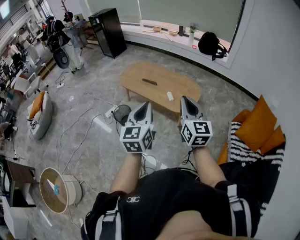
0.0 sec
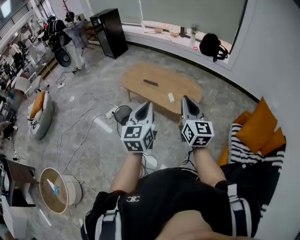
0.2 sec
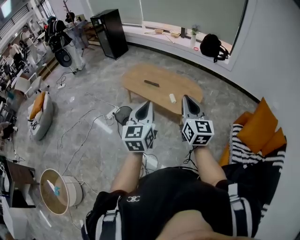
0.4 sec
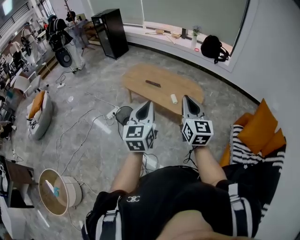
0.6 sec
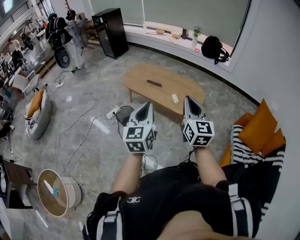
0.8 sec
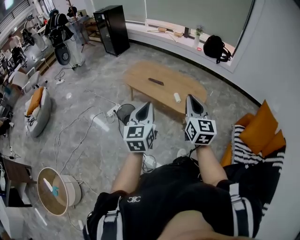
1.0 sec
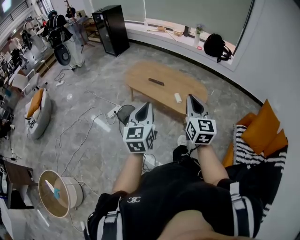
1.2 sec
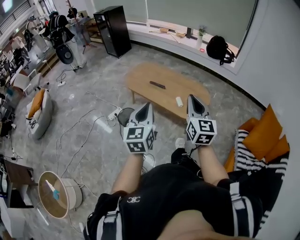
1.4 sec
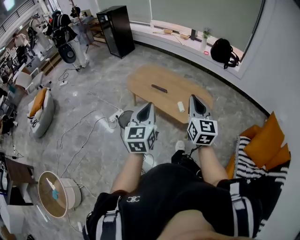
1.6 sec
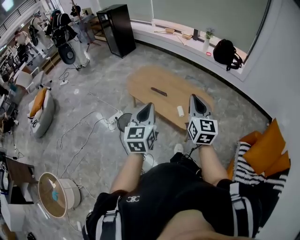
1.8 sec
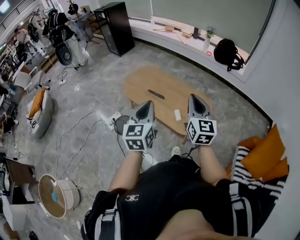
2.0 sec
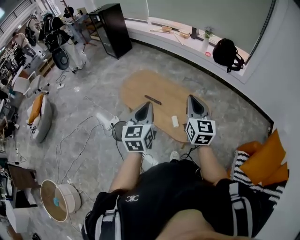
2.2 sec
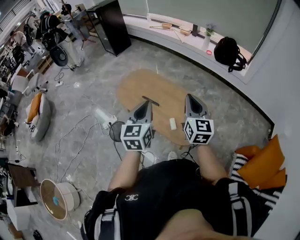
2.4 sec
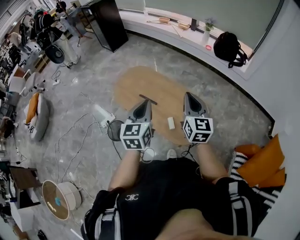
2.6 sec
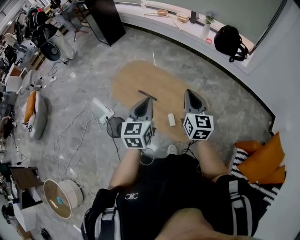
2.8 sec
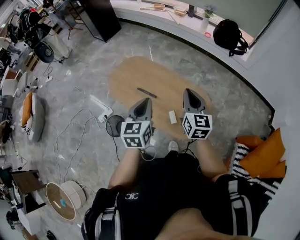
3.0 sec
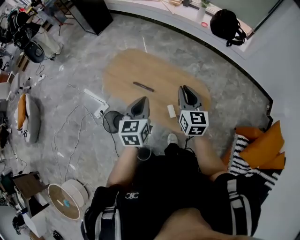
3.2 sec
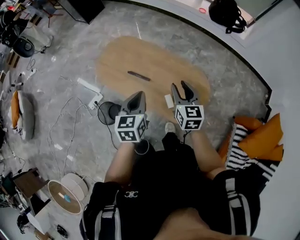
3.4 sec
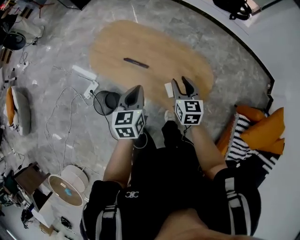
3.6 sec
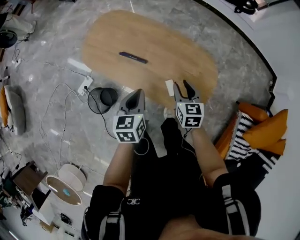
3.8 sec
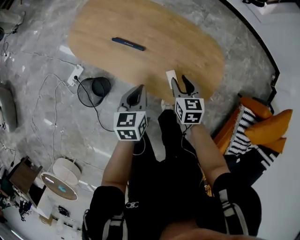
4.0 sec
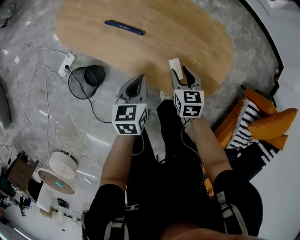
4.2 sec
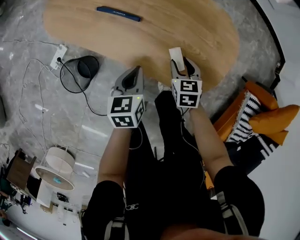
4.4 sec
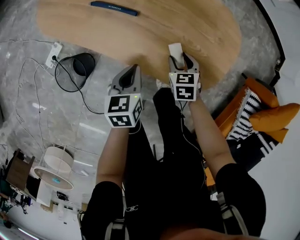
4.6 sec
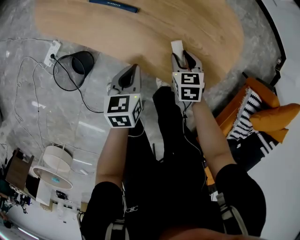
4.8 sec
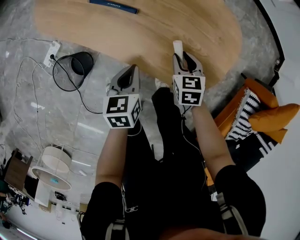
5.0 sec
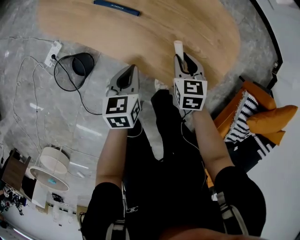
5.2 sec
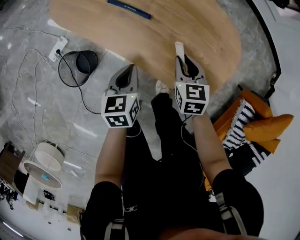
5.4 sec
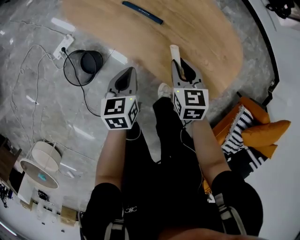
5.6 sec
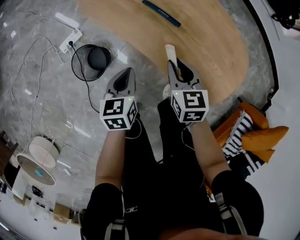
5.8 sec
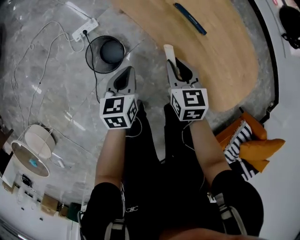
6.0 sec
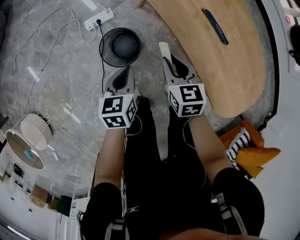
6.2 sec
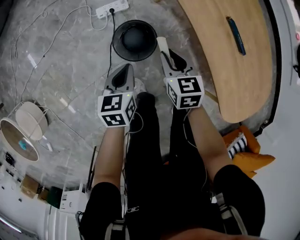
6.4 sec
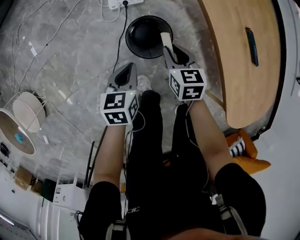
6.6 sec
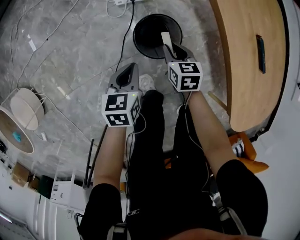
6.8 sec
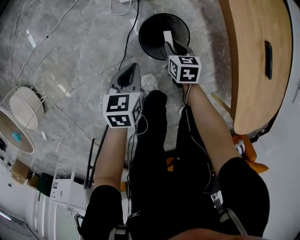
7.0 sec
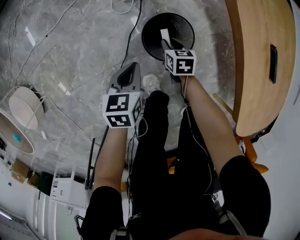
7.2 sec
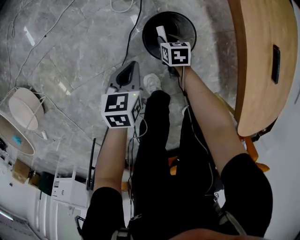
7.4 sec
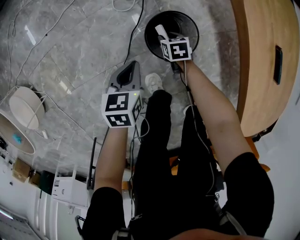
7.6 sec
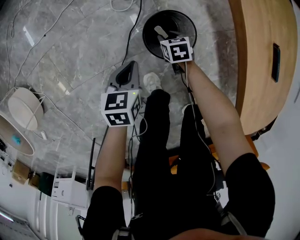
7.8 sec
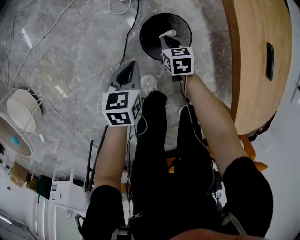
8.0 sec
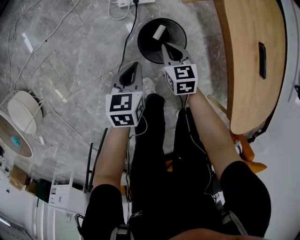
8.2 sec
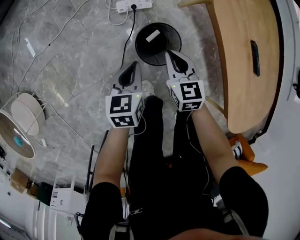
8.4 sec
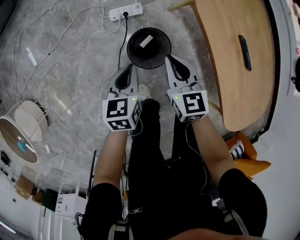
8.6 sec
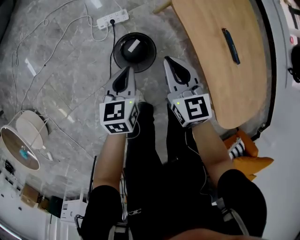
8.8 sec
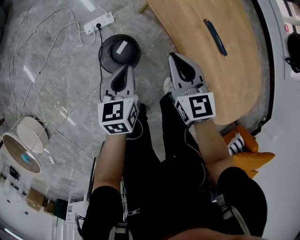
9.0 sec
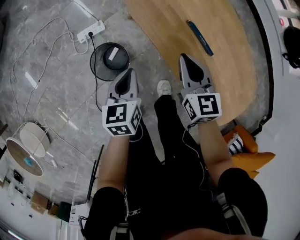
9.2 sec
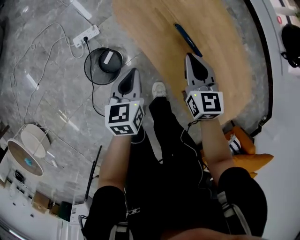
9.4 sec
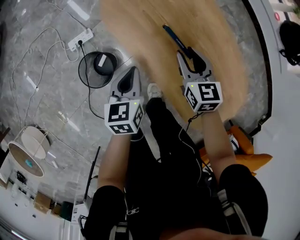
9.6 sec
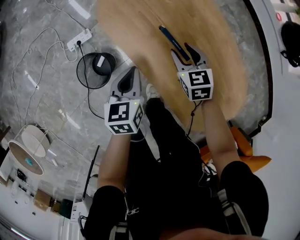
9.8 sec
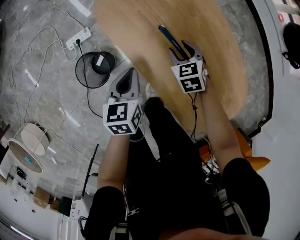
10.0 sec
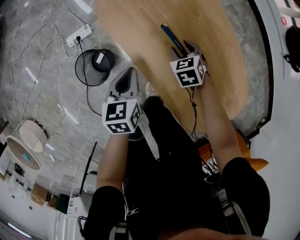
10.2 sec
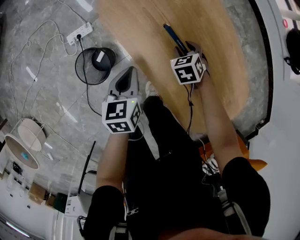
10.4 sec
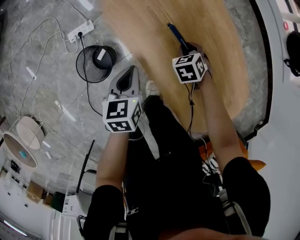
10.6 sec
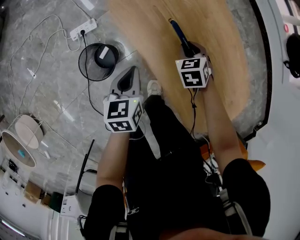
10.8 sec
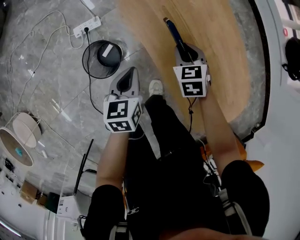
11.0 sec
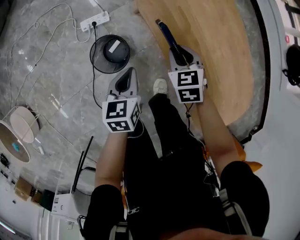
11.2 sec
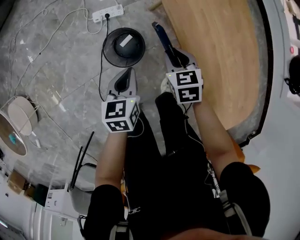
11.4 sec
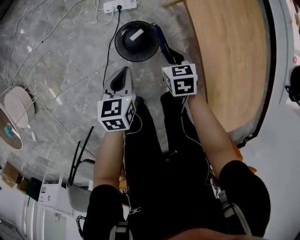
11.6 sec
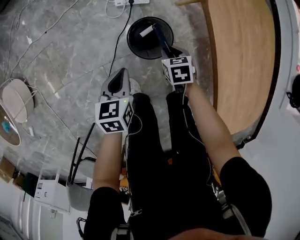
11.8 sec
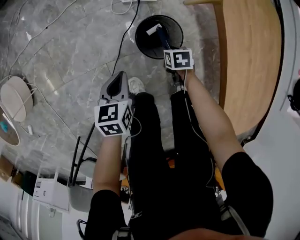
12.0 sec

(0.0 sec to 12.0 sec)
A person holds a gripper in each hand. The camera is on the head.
0.0 sec - 1.6 sec: The right gripper moves forward, some 15 cm, while the left gripper shifts about 15 cm forward and to the left.
1.6 sec - 3.0 sec: The grippers both shift forward by about 35 cm.
3.0 sec - 4.4 sec: The two grippers go some 50 cm downward. The right gripper tips its fingers downward by approximately 40 degrees, and opens up; the left gripper turns by some 30 degrees.
4.4 sec - 6.0 sec: The left gripper shifts by some 25 cm, and swivels about 20 degrees; the right gripper changes place by some 30 cm, and changes its angle by some 30 degrees.
6.0 sec - 7.6 sec: The right gripper shifts about 35 cm downward, and changes its angle by about 40 degrees, while the left gripper ends up about 35 cm from where it was.
7.6 sec - 9.0 sec: The left gripper travels to the right and upward by some 25 cm. The right gripper heads upward and to the right, covering some 50 cm, angles its fingers upward, by approximately 40 degrees, and closes up.
9.0 sec - 10.4 sec: The right gripper is displaced to the right and downward by roughly 30 cm, tips its fingers downward by some 40 degrees, and opens up, while the left gripper is displaced to the right by some 20 cm.
10.4 sec - 12.0 sec: The pair of grippers is taken some 40 cm. The right gripper swivels about 20 degrees.

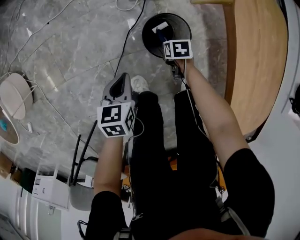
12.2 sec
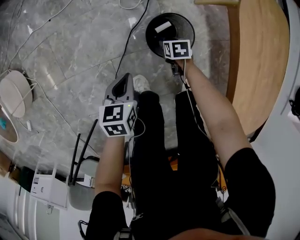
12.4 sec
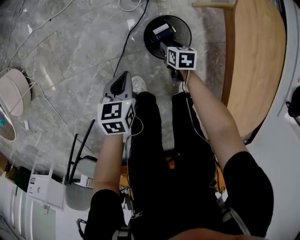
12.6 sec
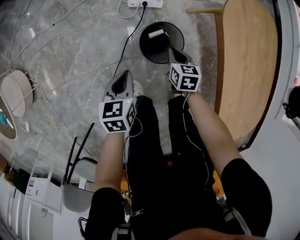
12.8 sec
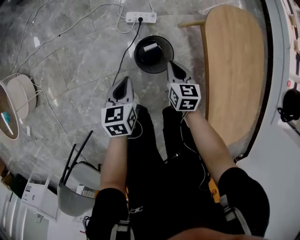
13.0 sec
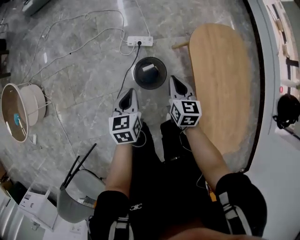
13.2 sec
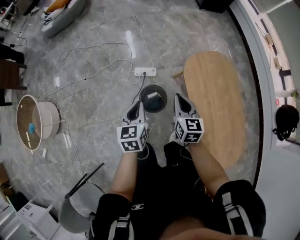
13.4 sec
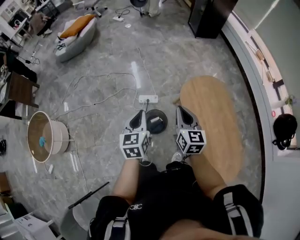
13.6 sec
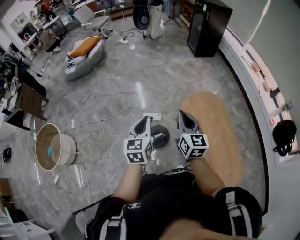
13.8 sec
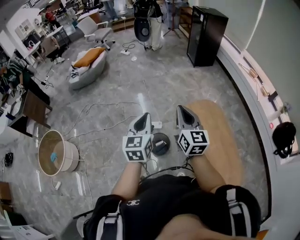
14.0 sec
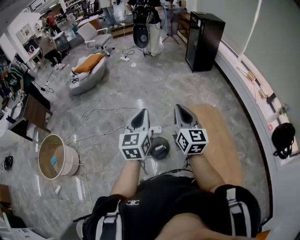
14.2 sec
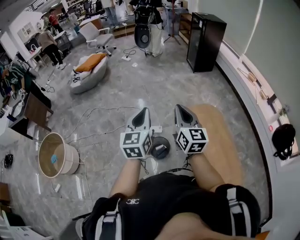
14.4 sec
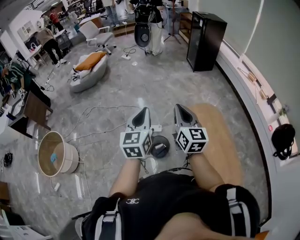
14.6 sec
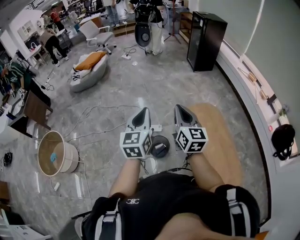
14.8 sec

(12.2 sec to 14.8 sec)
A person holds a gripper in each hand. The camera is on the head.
12.2 sec - 13.4 sec: The right gripper shifts some 50 cm upward, tilts its fingers approximately 50 degrees upward, and opens and closes again, while the left gripper goes about 35 cm upward, and turns by about 20 degrees.
13.4 sec - 14.8 sec: Both grippers move upward, roughly 35 cm. The left gripper turns by about 30 degrees. The right gripper changes its angle by roughly 30 degrees.

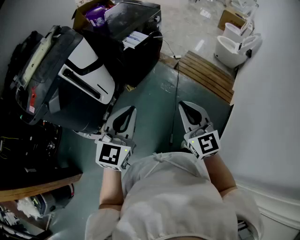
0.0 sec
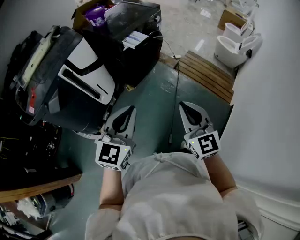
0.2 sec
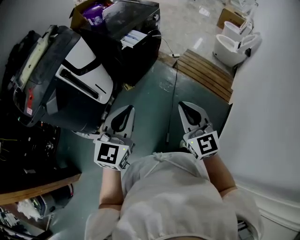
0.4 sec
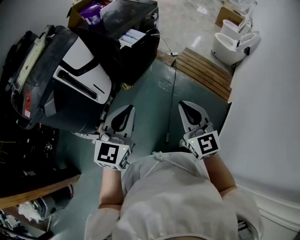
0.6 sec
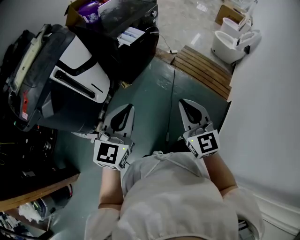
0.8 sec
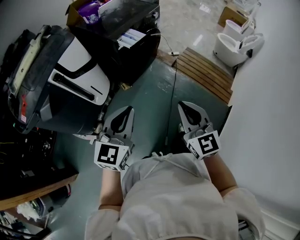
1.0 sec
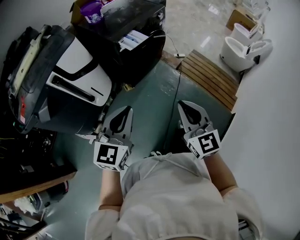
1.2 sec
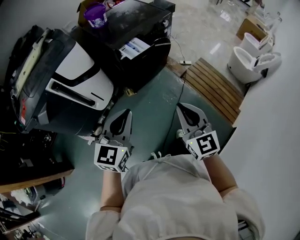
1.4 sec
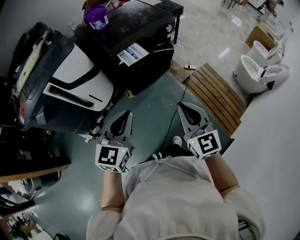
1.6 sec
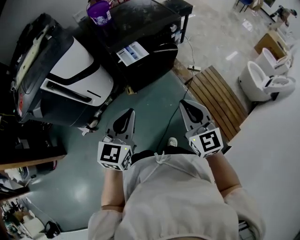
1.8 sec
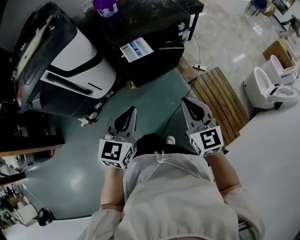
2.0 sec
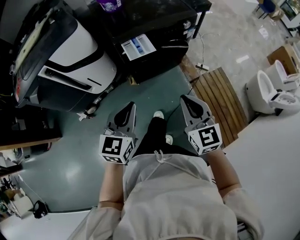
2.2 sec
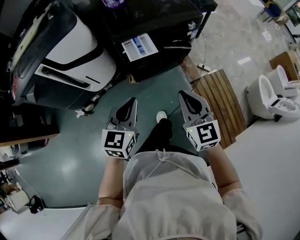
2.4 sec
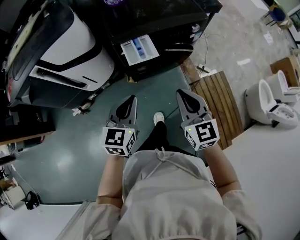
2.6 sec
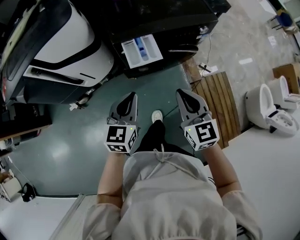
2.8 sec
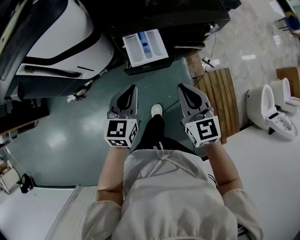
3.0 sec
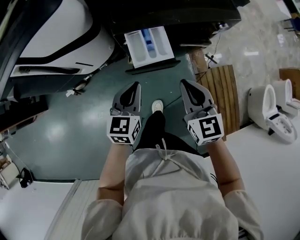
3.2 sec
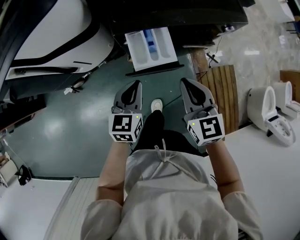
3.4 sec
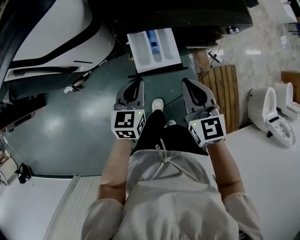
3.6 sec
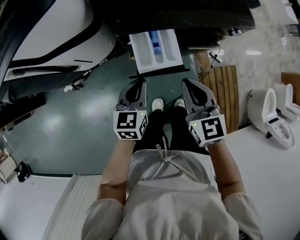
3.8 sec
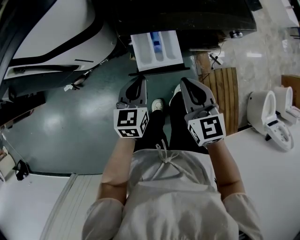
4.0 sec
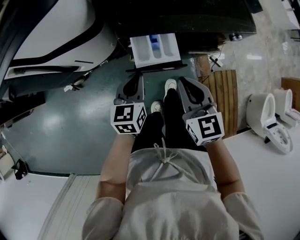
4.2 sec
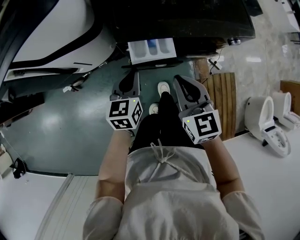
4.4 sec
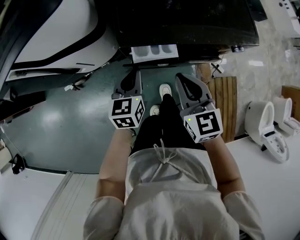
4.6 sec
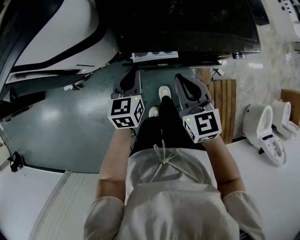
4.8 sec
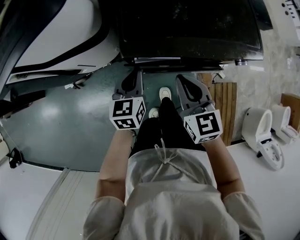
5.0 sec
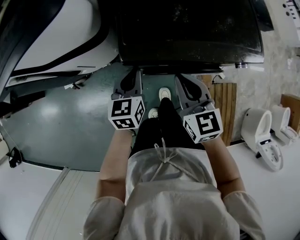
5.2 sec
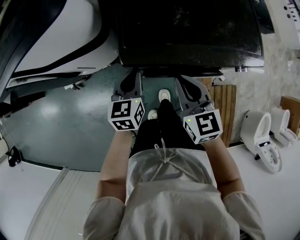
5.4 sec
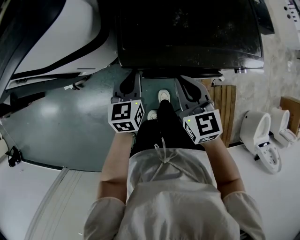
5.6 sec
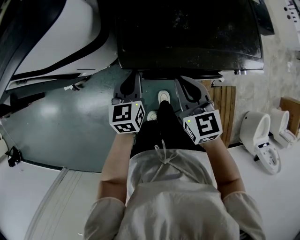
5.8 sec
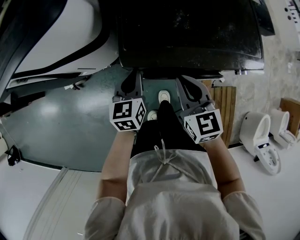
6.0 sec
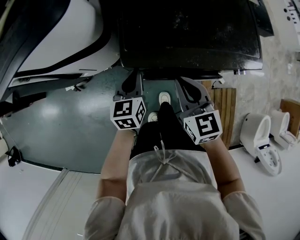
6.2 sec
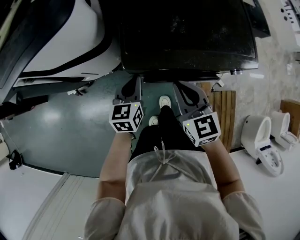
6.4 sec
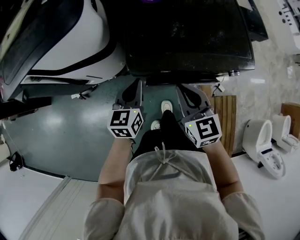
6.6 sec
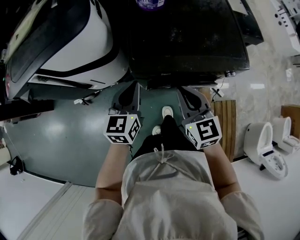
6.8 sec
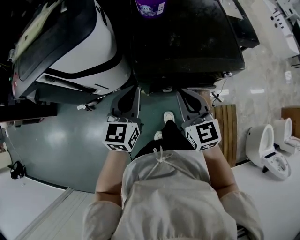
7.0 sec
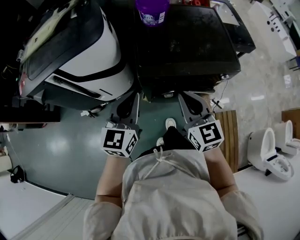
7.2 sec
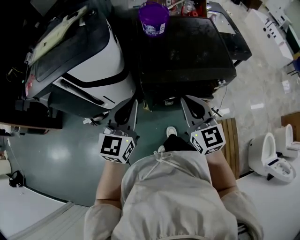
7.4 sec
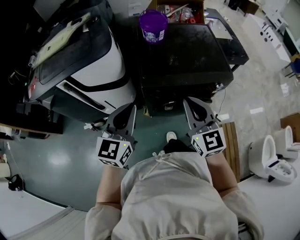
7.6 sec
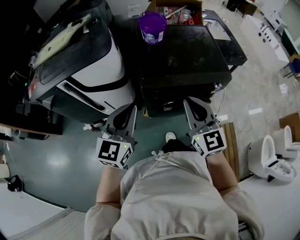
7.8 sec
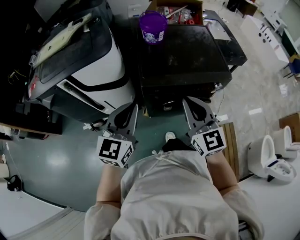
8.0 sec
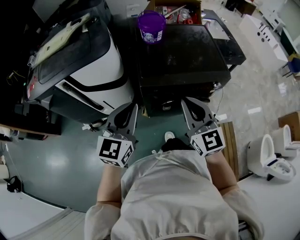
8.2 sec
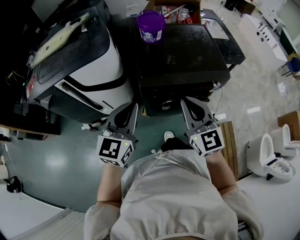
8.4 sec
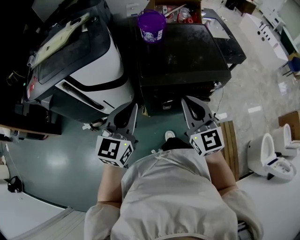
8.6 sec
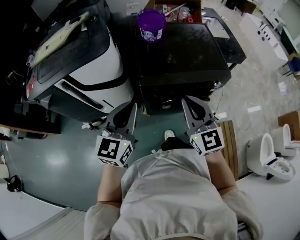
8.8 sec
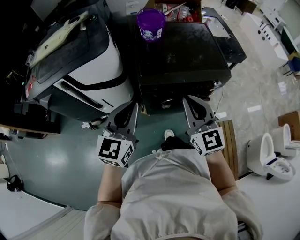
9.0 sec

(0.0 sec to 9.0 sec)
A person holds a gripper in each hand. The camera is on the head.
0.0 sec - 1.6 sec: The two grippers go approximately 30 cm forward and to the right. The left gripper swivels about 20 degrees.
1.6 sec - 3.0 sec: The grippers both shift forward and downward by roughly 35 cm. The left gripper rotates about 30 degrees, while the right gripper swivels about 30 degrees.
3.0 sec - 4.4 sec: Both grippers move forward and downward, about 15 cm.
4.4 sec - 6.0 sec: Both grippers move forward, some 10 cm.
6.0 sec - 7.6 sec: The two grippers go roughly 30 cm upward and backward. The left gripper swivels some 30 degrees; the right gripper changes its angle by approximately 20 degrees.
7.6 sec - 9.0 sec: The grippers stay close to where they were, moving slightly.
